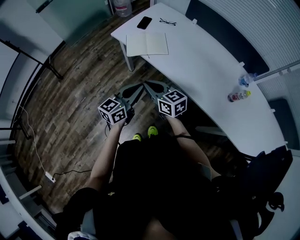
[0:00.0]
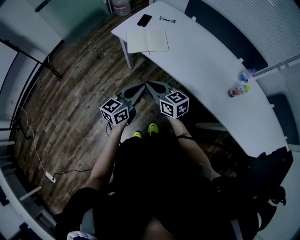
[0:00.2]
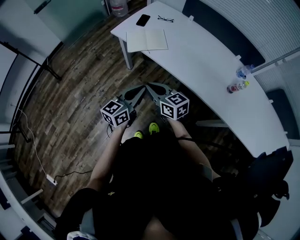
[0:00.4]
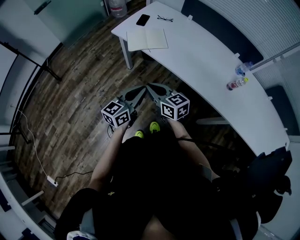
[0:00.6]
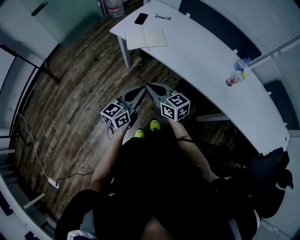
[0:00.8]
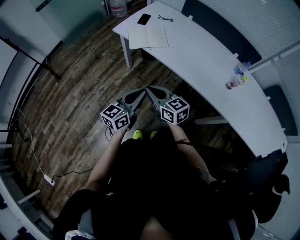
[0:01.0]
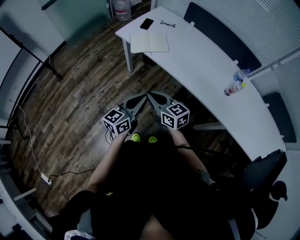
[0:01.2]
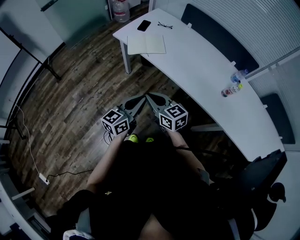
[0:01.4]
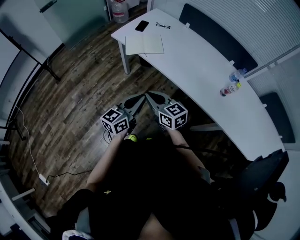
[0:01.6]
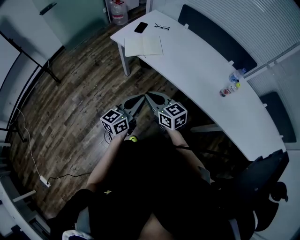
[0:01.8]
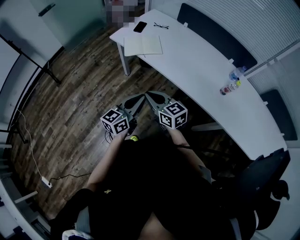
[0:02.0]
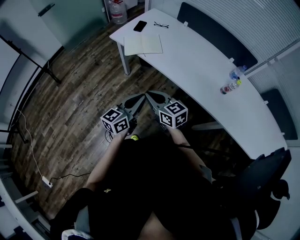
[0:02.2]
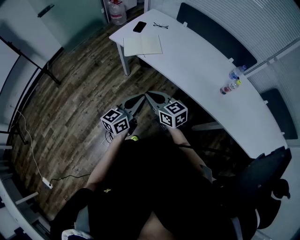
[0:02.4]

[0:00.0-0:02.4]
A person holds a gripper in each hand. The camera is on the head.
0:00.0 to 0:01.2: The grippers both shift backward by about 10 cm.
0:01.2 to 0:02.4: The grippers make only small movements.

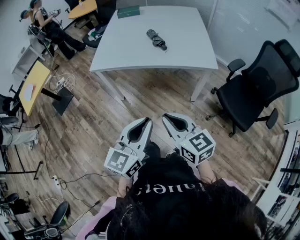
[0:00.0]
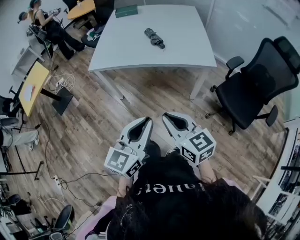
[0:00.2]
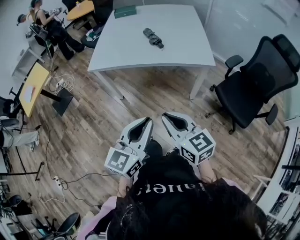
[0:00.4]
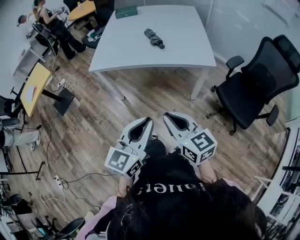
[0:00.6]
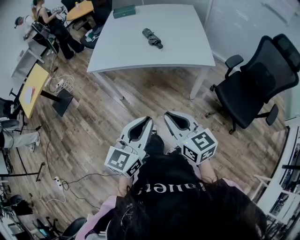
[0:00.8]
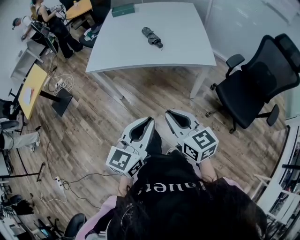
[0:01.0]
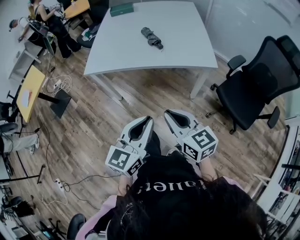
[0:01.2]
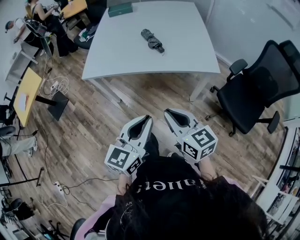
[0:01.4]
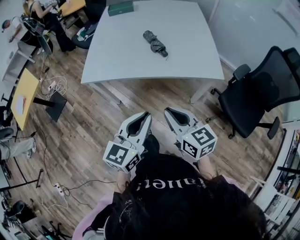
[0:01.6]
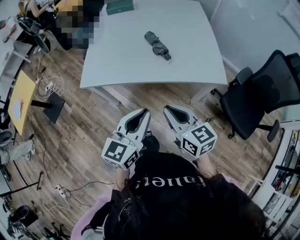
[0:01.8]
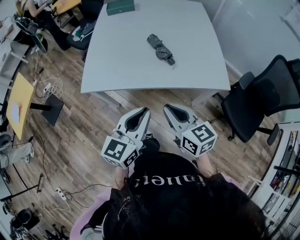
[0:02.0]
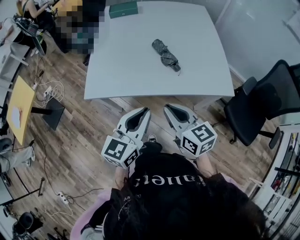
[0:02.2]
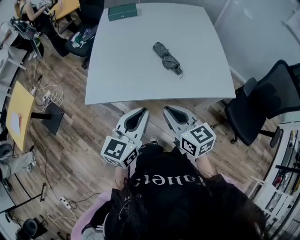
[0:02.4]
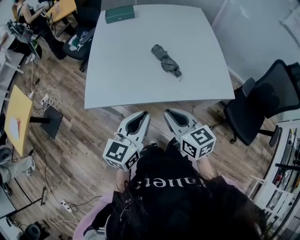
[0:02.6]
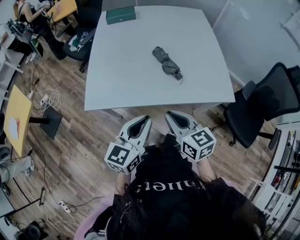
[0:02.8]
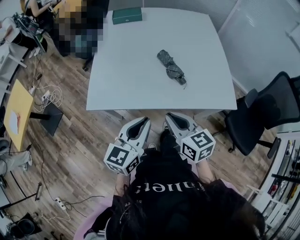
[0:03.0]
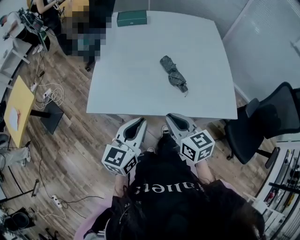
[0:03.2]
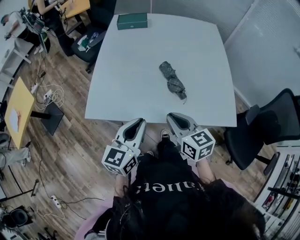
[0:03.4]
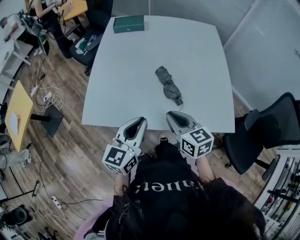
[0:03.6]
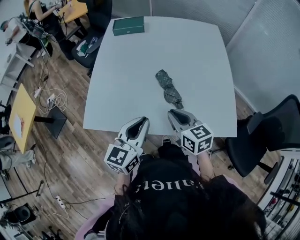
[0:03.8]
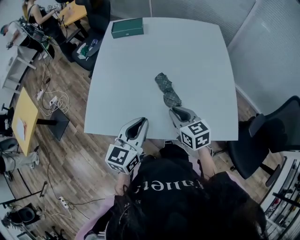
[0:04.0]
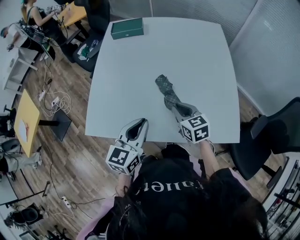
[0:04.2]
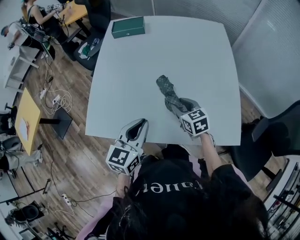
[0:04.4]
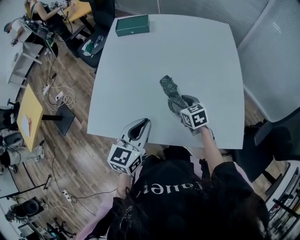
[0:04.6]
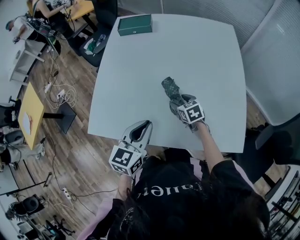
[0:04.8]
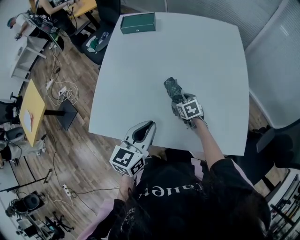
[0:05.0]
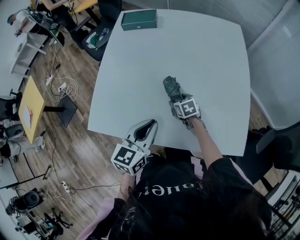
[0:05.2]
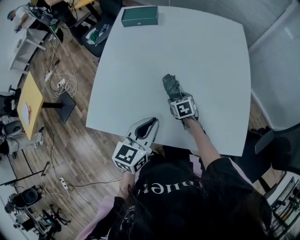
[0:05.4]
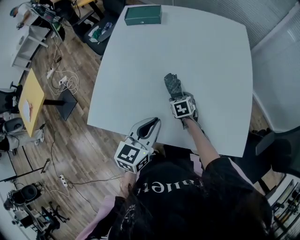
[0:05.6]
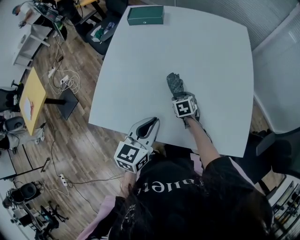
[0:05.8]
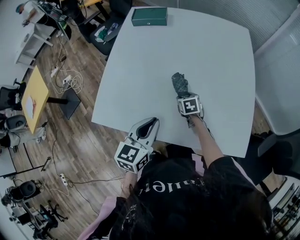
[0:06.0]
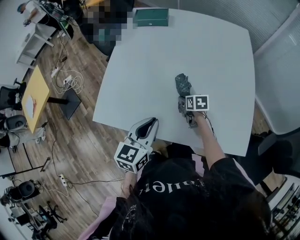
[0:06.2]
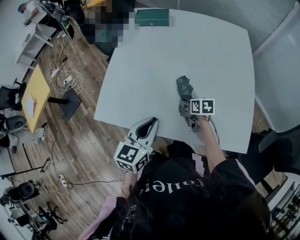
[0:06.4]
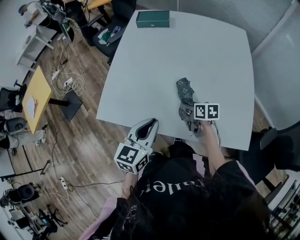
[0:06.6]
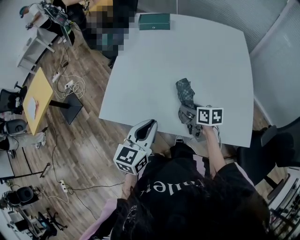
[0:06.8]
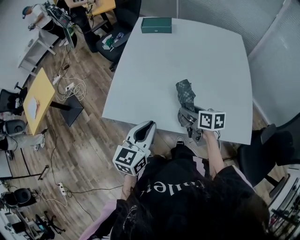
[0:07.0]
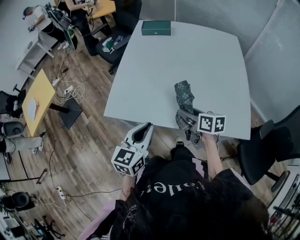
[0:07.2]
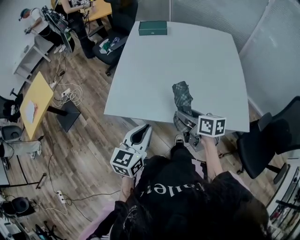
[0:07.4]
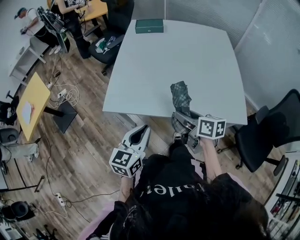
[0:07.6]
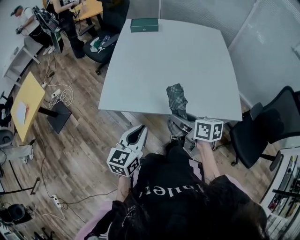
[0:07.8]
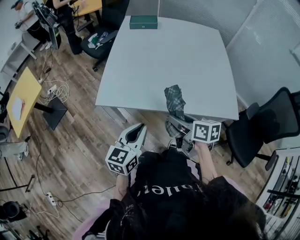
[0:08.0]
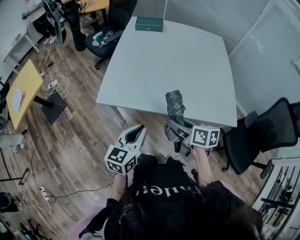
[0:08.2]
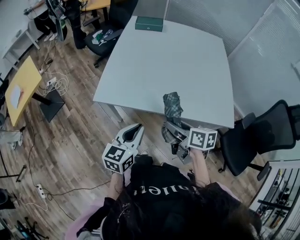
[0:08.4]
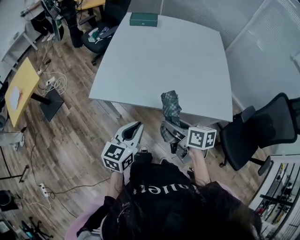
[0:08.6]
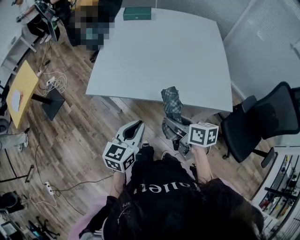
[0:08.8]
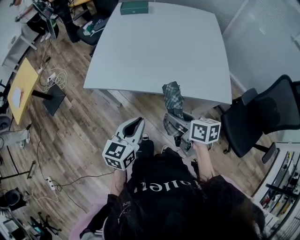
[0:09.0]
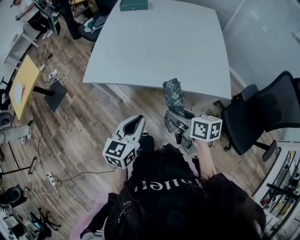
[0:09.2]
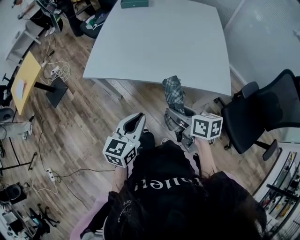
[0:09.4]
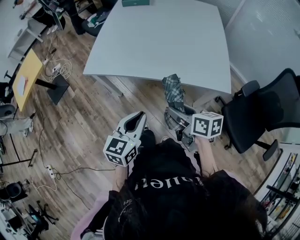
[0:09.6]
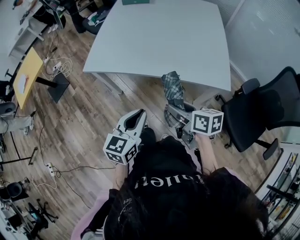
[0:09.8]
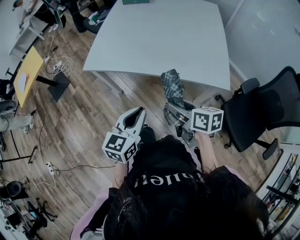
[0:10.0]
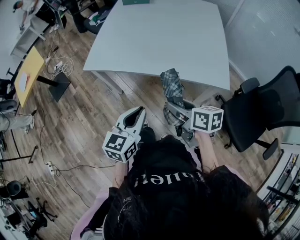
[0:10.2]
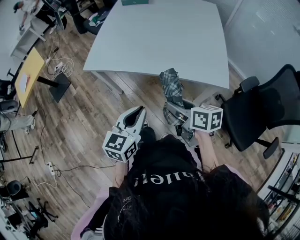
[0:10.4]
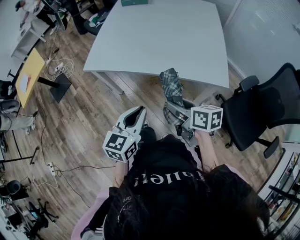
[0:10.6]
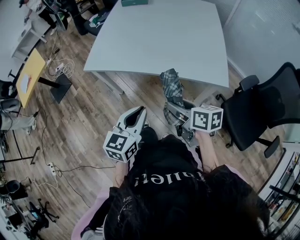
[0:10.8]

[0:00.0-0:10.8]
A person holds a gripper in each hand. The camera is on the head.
0:00.0 to 0:01.6: The grippers both shift forward by some 15 cm.
0:01.6 to 0:03.0: Both grippers move forward and to the left, roughly 20 cm.
0:03.0 to 0:04.6: The right gripper travels forward, downward and to the right by some 35 cm, swivels about 20 degrees, and opens up. The left gripper goes roughly 20 cm forward.
0:04.6 to 0:06.2: The right gripper travels downward by roughly 10 cm, and changes its angle by some 20 degrees.
0:06.2 to 0:07.8: The left gripper shifts some 25 cm backward and to the left, while the right gripper is displaced backward, upward and to the left by some 35 cm, and turns by about 30 degrees.
0:07.8 to 0:09.2: The right gripper shifts some 15 cm backward and to the right. The left gripper heads to the right and backward, covering approximately 15 cm.
0:09.2 to 0:10.8: The left gripper goes roughly 5 cm backward. The right gripper changes place by roughly 5 cm.

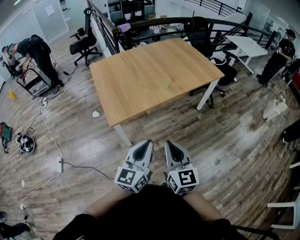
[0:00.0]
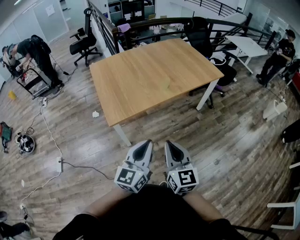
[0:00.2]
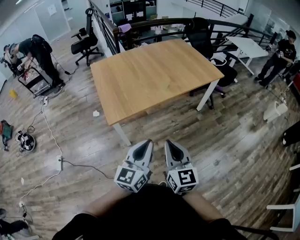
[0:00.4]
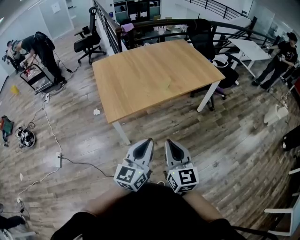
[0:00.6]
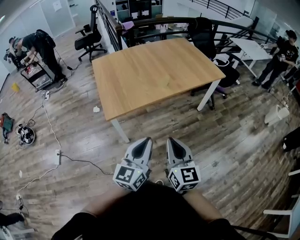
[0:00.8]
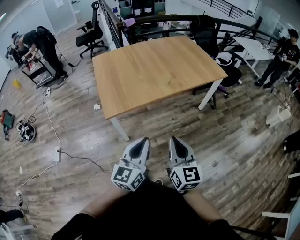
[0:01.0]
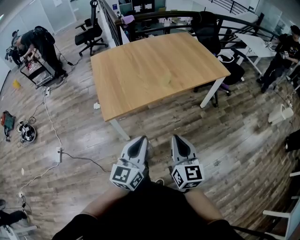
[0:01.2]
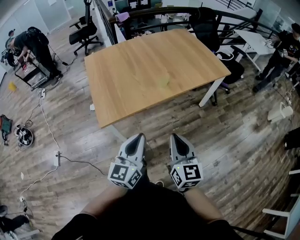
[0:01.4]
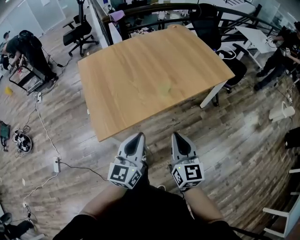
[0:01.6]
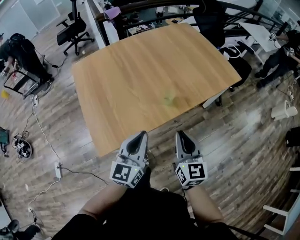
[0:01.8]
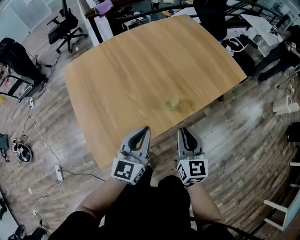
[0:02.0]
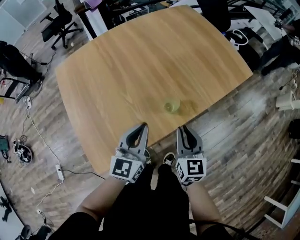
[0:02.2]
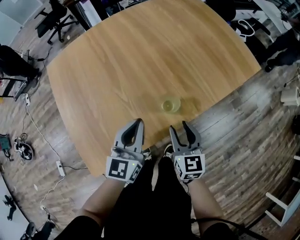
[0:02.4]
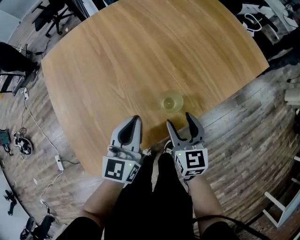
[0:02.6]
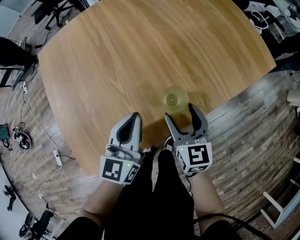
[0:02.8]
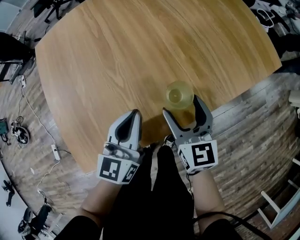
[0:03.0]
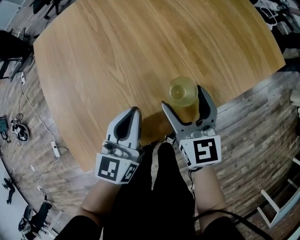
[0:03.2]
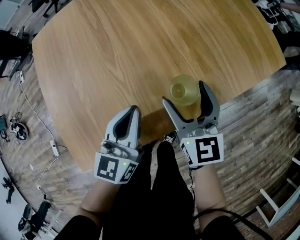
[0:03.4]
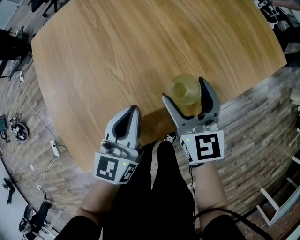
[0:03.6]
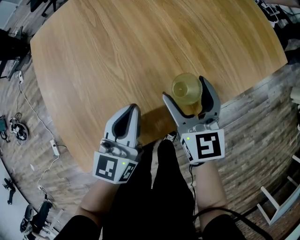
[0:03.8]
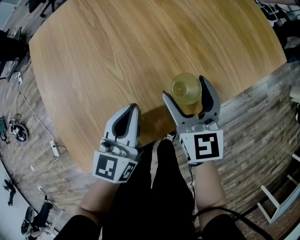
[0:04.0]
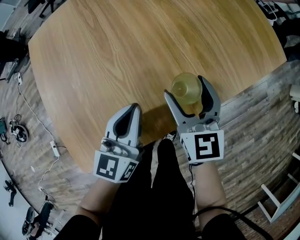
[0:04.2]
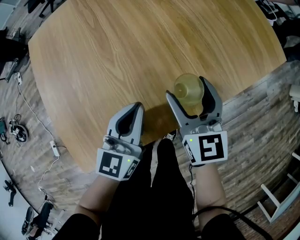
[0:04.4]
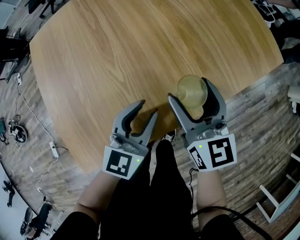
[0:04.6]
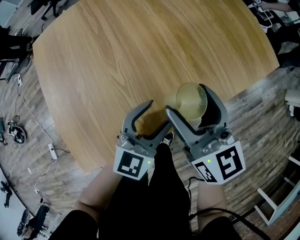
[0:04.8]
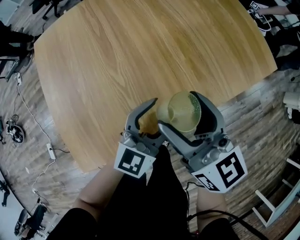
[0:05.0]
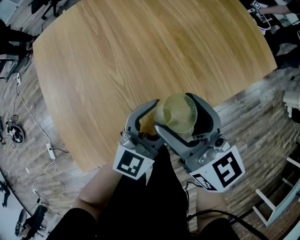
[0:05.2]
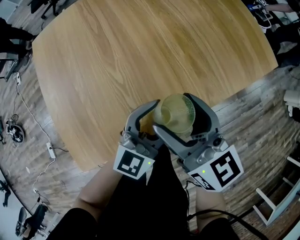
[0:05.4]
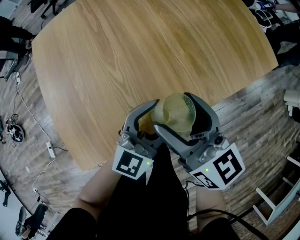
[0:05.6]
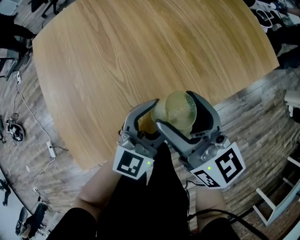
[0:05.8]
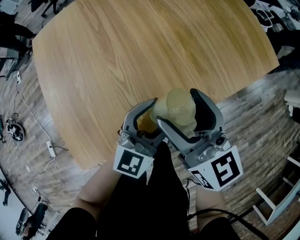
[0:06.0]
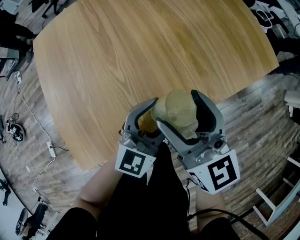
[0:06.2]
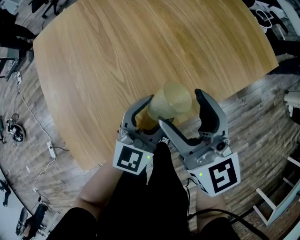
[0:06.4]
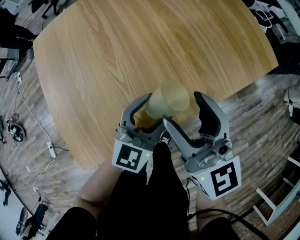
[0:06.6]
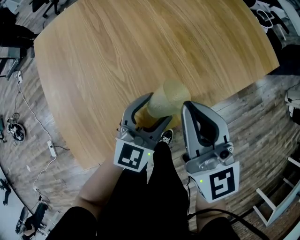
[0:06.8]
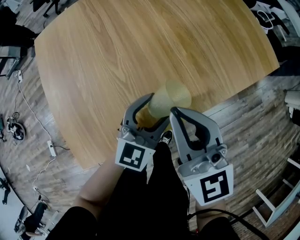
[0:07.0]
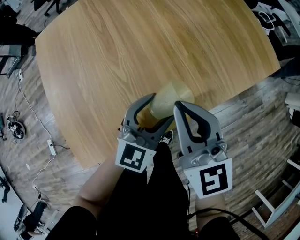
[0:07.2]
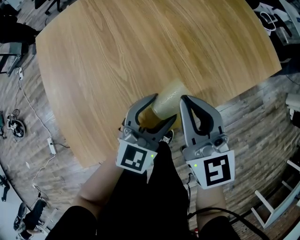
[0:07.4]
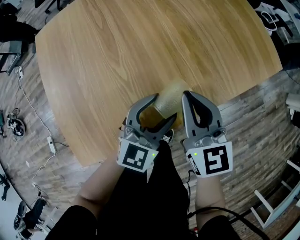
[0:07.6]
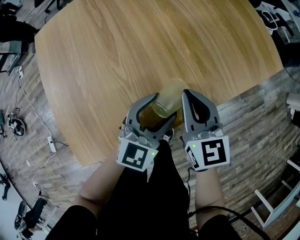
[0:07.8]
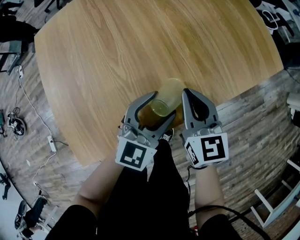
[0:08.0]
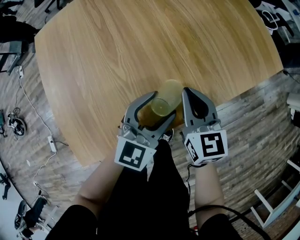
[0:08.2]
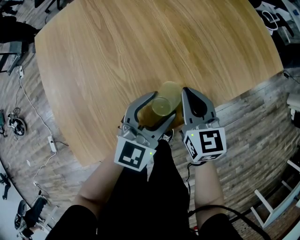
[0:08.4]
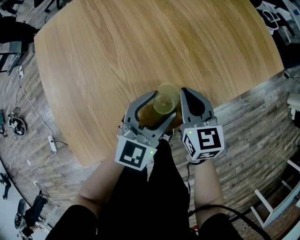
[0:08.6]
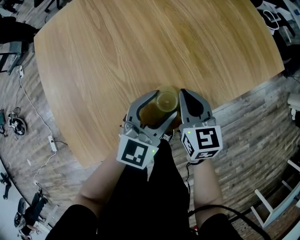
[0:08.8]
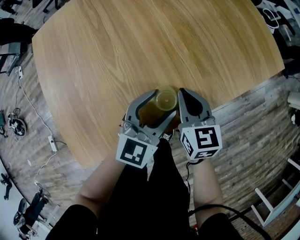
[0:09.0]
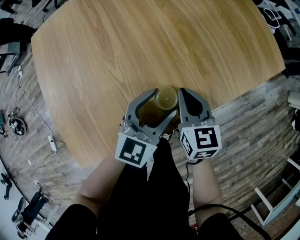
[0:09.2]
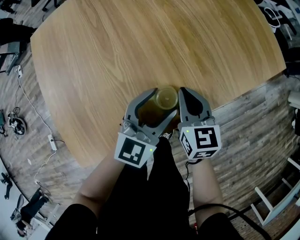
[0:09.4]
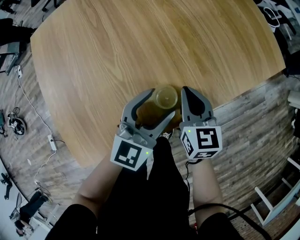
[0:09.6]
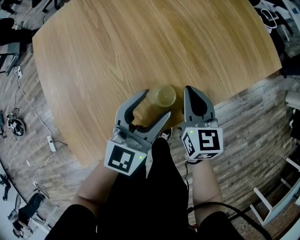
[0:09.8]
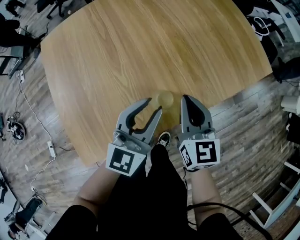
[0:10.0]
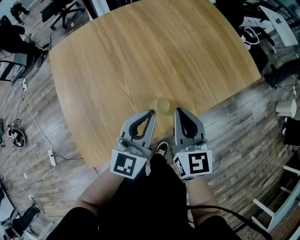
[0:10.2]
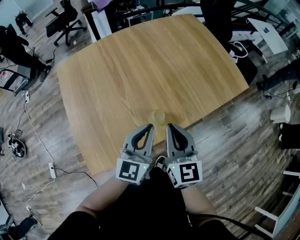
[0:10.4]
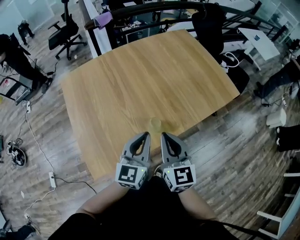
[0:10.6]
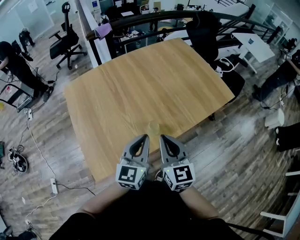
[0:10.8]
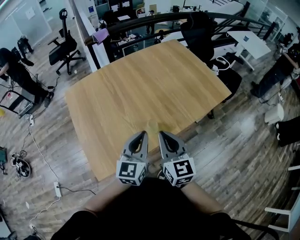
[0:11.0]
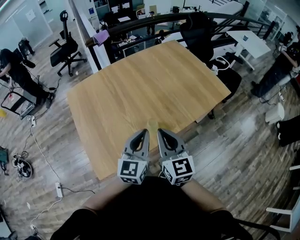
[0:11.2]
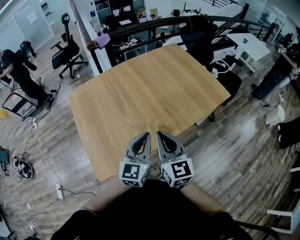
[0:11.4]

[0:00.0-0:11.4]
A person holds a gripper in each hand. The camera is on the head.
0:00.0 to 0:01.4: The right gripper travels forward and to the right by approximately 15 cm, while the left gripper travels forward by some 10 cm.
0:01.4 to 0:02.8: The pair of grippers is taken forward, some 40 cm. Both grippers travel together downward, about 25 cm. The right gripper opens up.
0:02.8 to 0:04.2: The right gripper shifts by approximately 5 cm.
0:04.2 to 0:05.6: The left gripper travels to the right by about 10 cm, swivels approximately 30 degrees, and opens its fingers; the right gripper moves upward and backward, roughly 10 cm, and changes its angle by some 30 degrees.
0:05.6 to 0:07.2: The right gripper rotates about 20 degrees, and closes its fingers.
0:07.2 to 0:08.6: The right gripper is displaced downward by roughly 15 cm.
0:08.6 to 0:10.0: Both grippers travel together upward, about 10 cm. The left gripper closes.
0:10.0 to 0:11.4: Both grippers travel together upward and backward, approximately 25 cm. The left gripper closes.
